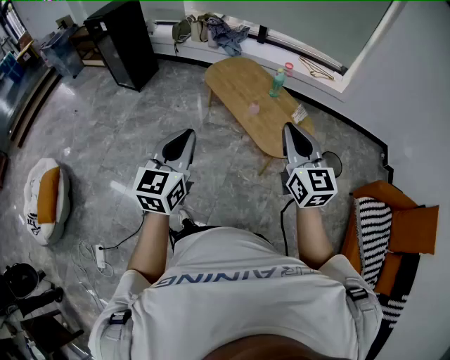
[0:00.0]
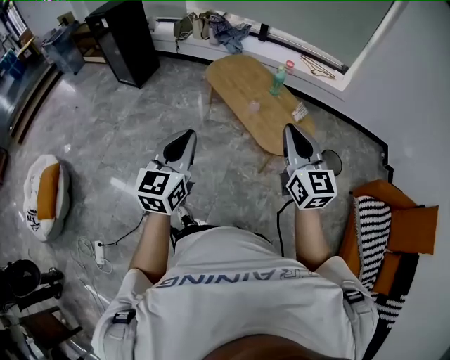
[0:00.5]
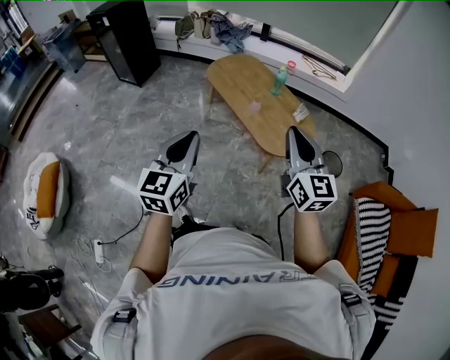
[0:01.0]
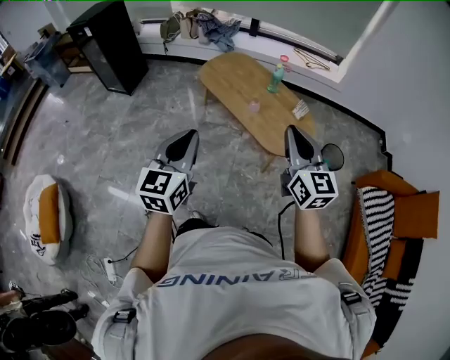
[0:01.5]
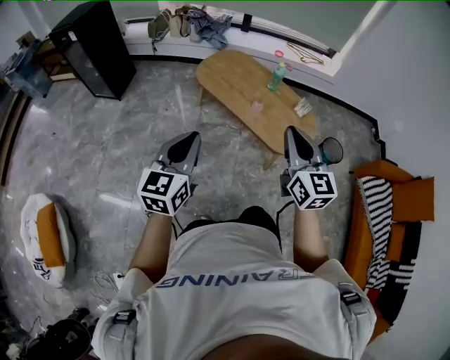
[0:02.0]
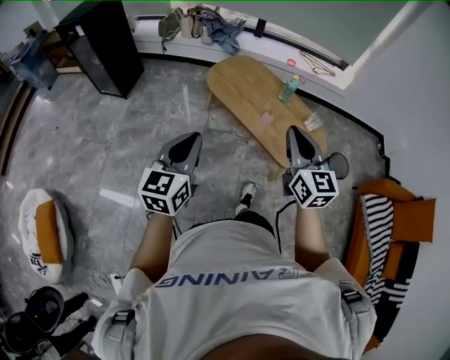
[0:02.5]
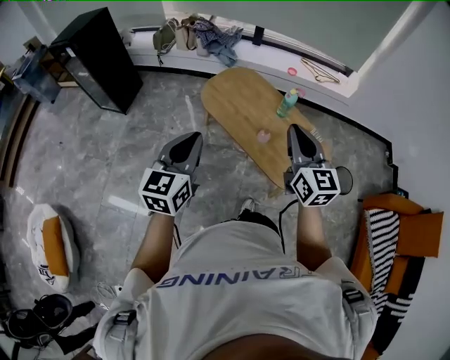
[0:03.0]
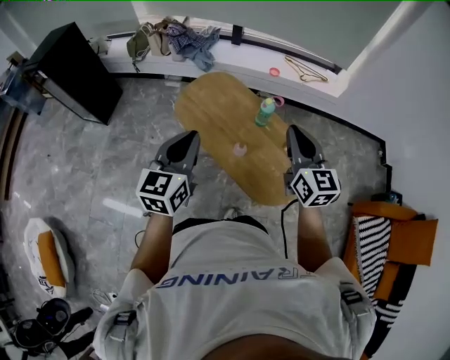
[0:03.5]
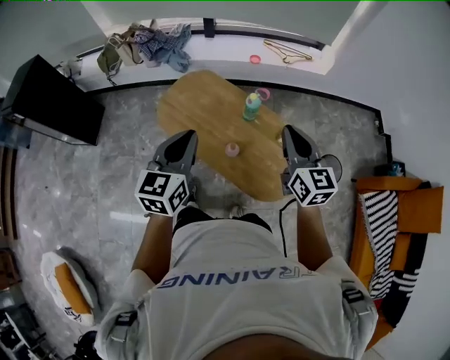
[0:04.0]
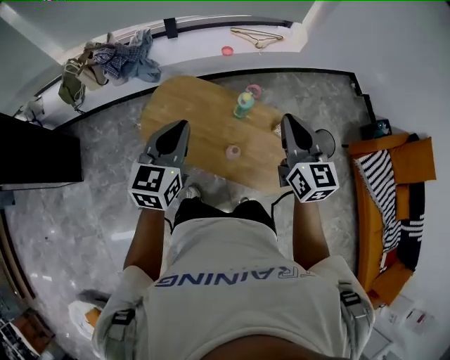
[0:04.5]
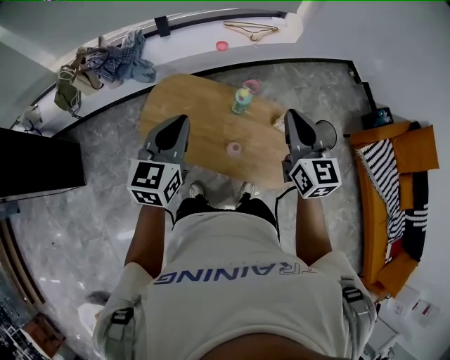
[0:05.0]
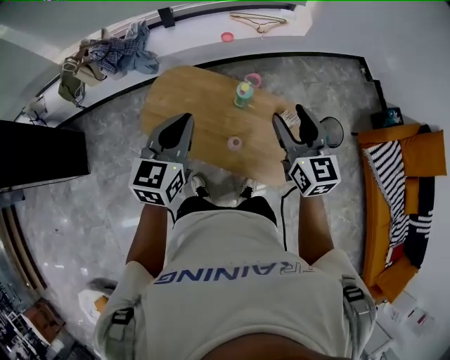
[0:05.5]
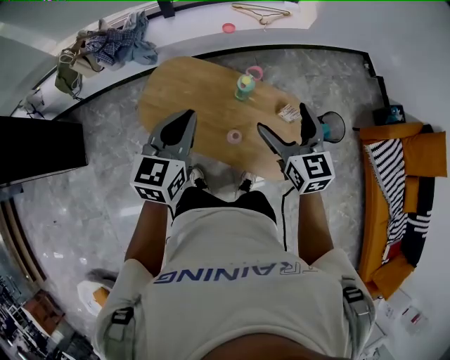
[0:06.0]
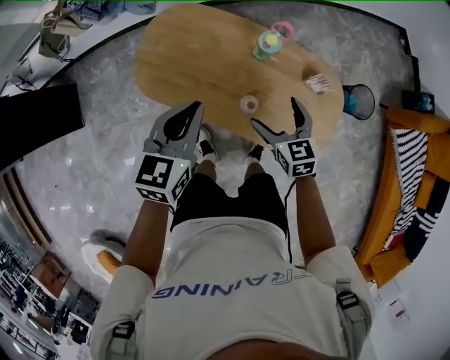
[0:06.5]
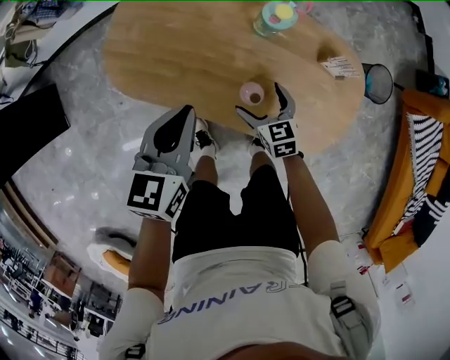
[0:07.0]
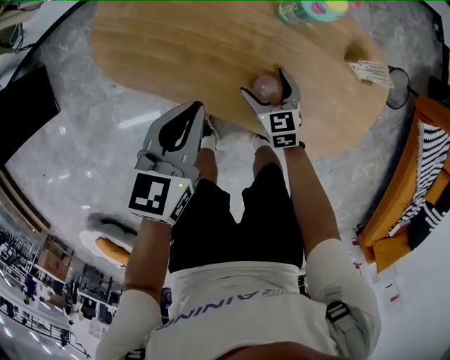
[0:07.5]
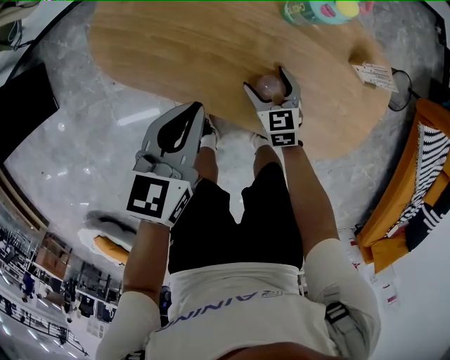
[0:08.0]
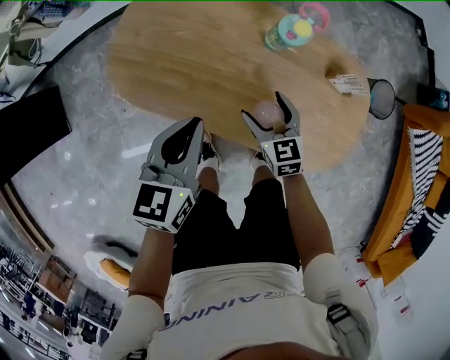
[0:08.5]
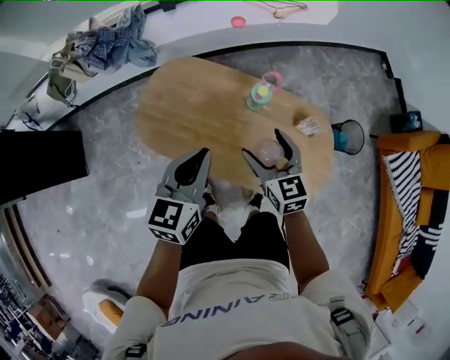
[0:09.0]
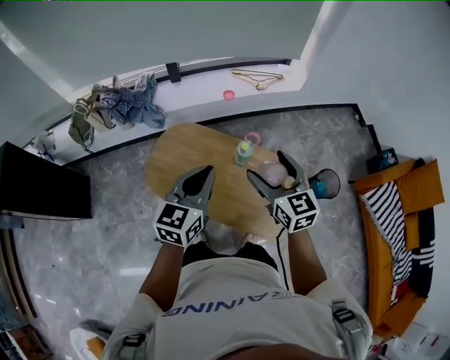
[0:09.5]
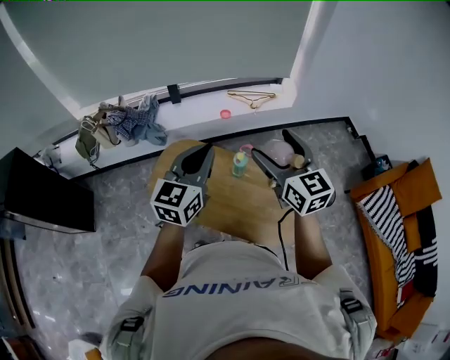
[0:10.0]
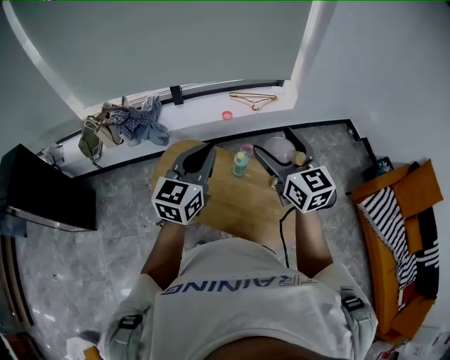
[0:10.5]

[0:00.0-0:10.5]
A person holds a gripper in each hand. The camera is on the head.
0:00.0 to 0:02.0: Both grippers travel together to the left and forward, approximately 15 cm.
0:02.0 to 0:04.0: The two grippers travel together, forward, approximately 40 cm.
0:04.0 to 0:06.5: The left gripper heads downward and forward, covering approximately 25 cm, and rotates approximately 20 degrees. The right gripper is displaced downward by some 30 cm, changes its angle by about 30 degrees, and opens its fingers.
0:06.5 to 0:08.5: The grippers both shift downward by roughly 15 cm.
0:08.5 to 0:10.5: The grippers both shift upward by approximately 50 cm. The left gripper rotates approximately 30 degrees. The right gripper angles its fingers upward, by approximately 40 degrees.

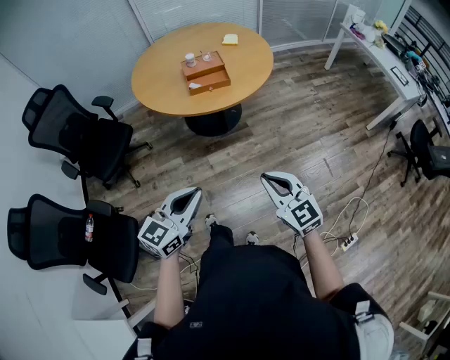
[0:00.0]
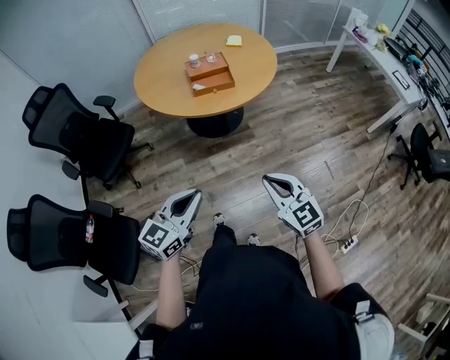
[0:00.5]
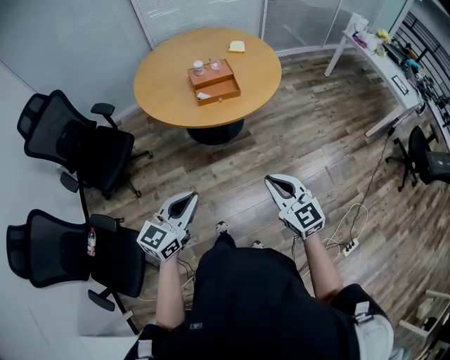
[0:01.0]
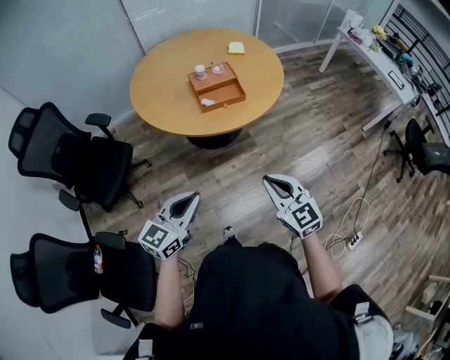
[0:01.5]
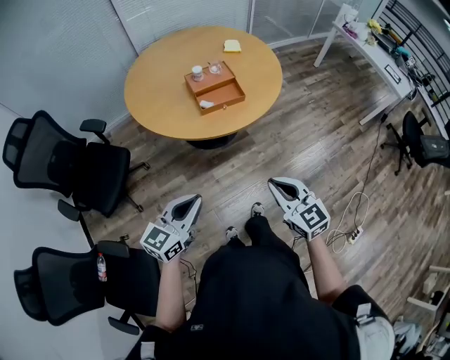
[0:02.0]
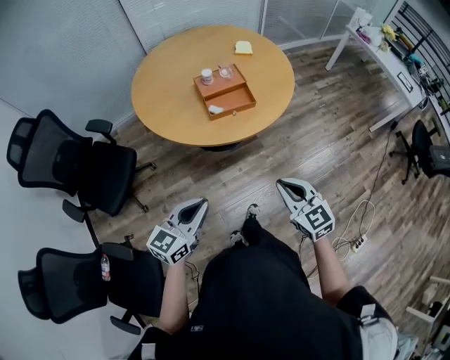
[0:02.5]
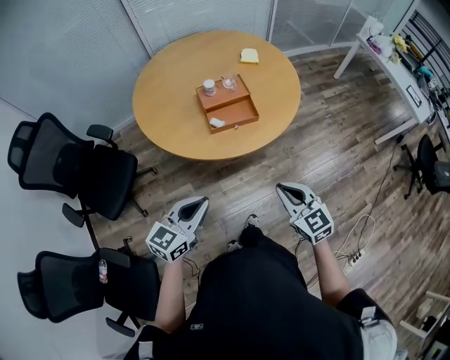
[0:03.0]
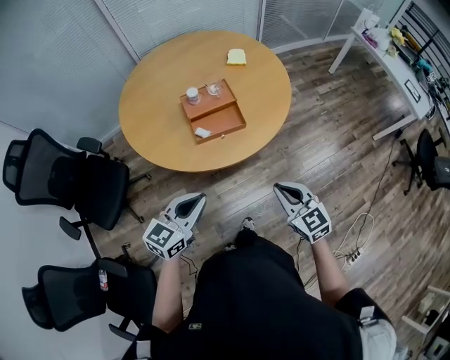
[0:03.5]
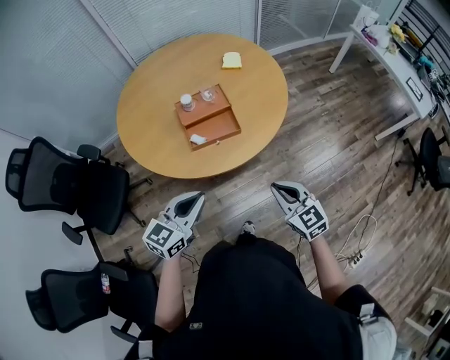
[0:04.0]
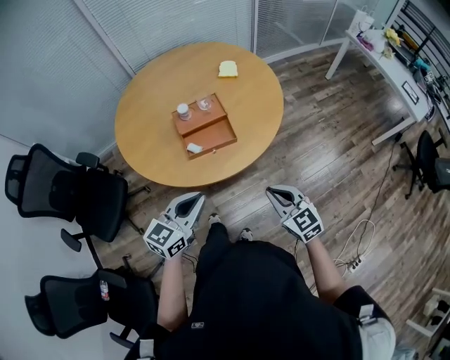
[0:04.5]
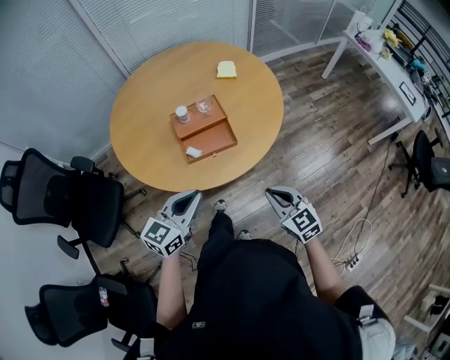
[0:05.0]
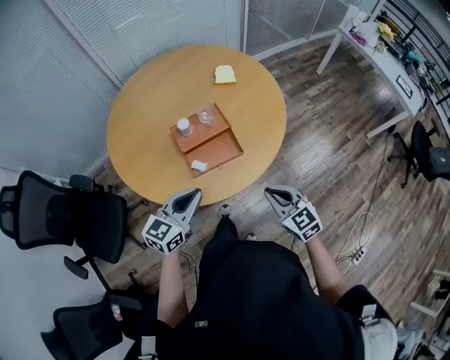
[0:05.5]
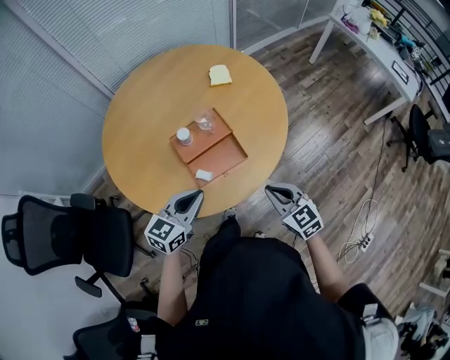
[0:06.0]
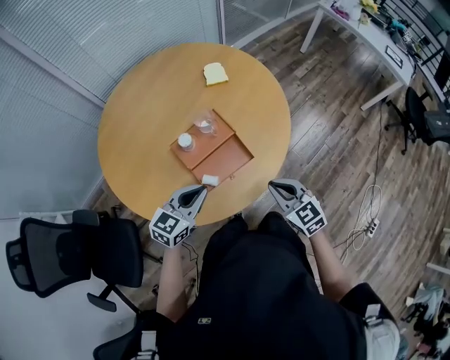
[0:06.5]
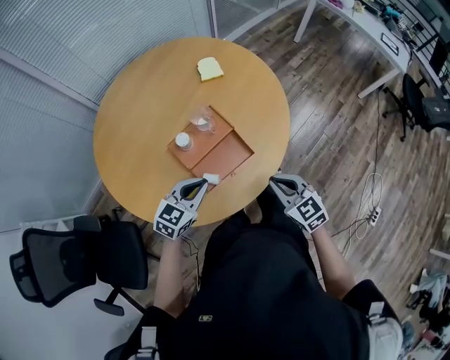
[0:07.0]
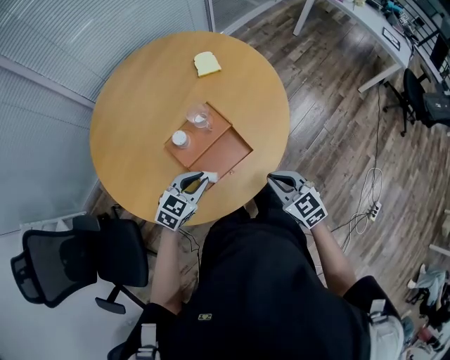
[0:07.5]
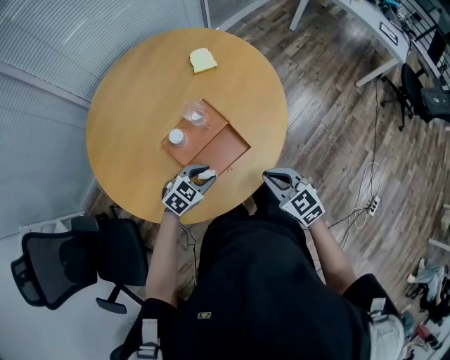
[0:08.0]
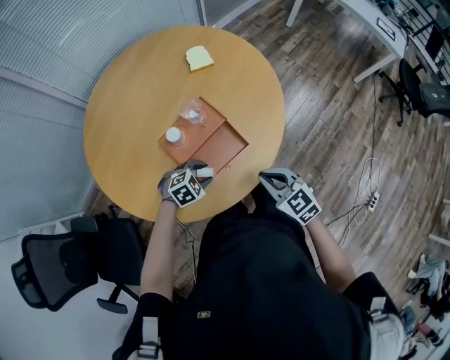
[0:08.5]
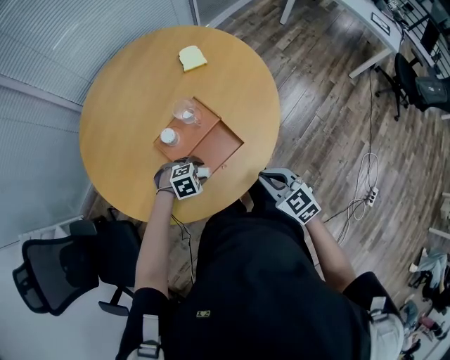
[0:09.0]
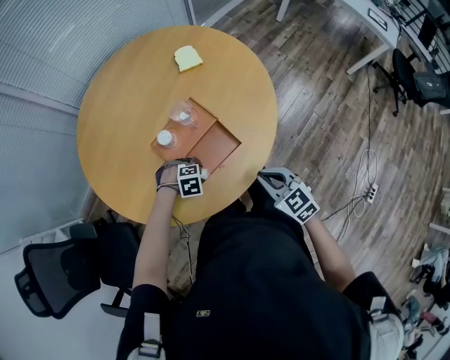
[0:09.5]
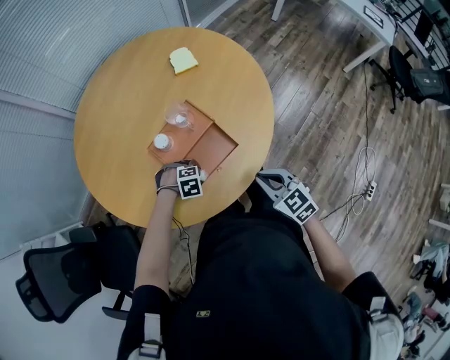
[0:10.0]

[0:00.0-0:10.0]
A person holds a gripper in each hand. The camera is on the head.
0:00.0 to 0:02.0: Both grippers move to the left and forward, about 20 cm.
0:02.0 to 0:04.0: The two grippers go about 25 cm forward and to the right.
0:04.0 to 0:06.0: Both grippers move forward and to the left, about 20 cm.
0:06.0 to 0:08.0: The right gripper changes place by some 5 cm. The left gripper goes some 20 cm downward and forward, swivels approximately 40 degrees, and opens its fingers.
0:08.0 to 0:10.0: The left gripper heads downward, covering roughly 10 cm, and angles its fingers downward, by approximately 30 degrees.

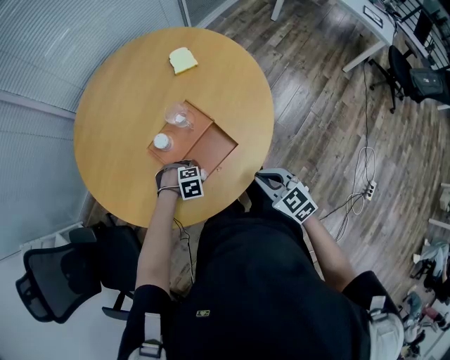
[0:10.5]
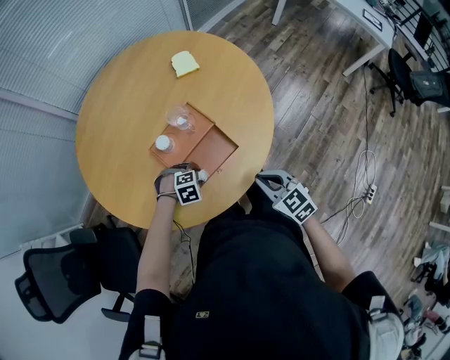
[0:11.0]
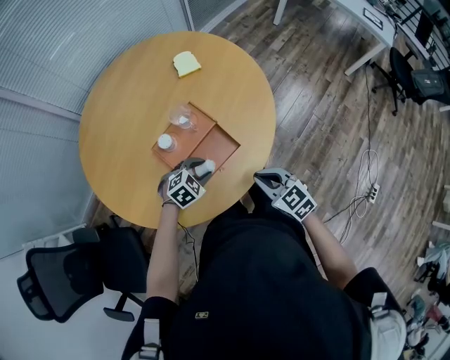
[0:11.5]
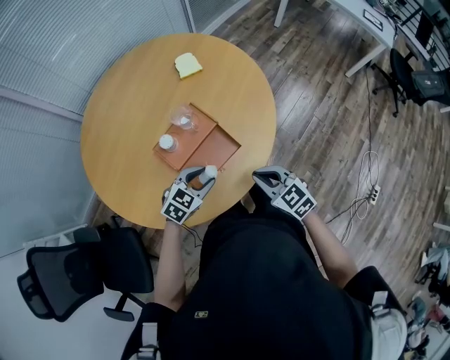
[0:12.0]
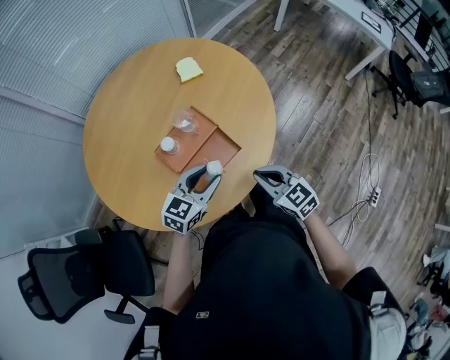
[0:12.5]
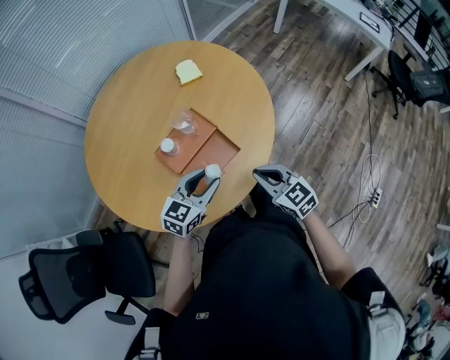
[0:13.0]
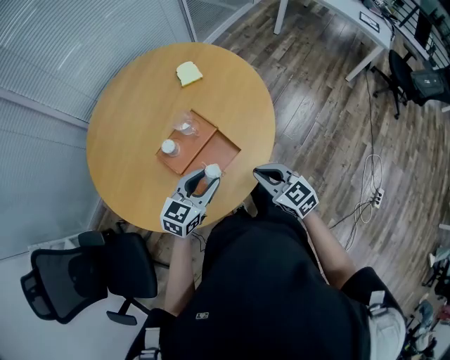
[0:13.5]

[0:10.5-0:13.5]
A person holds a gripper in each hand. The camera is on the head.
0:10.5 to 0:12.0: The left gripper shifts some 15 cm upward, and tilts its fingers approximately 40 degrees upward.
0:12.0 to 0:13.5: The left gripper travels upward by approximately 10 cm, and changes its angle by about 20 degrees.

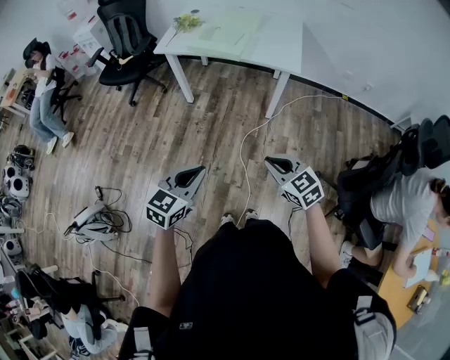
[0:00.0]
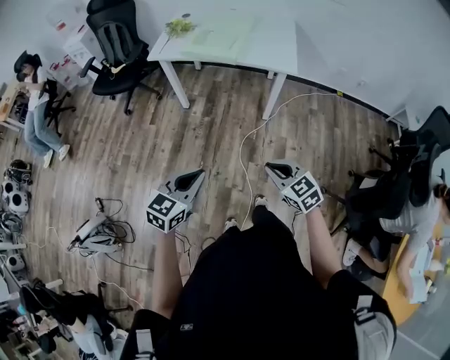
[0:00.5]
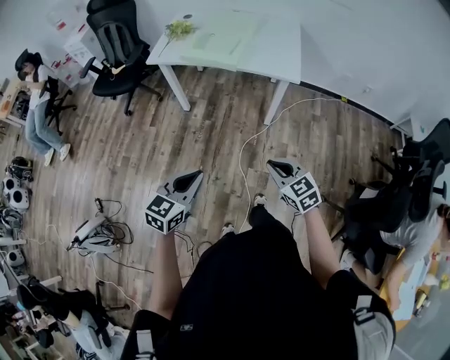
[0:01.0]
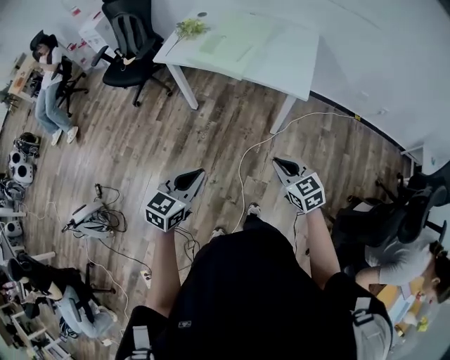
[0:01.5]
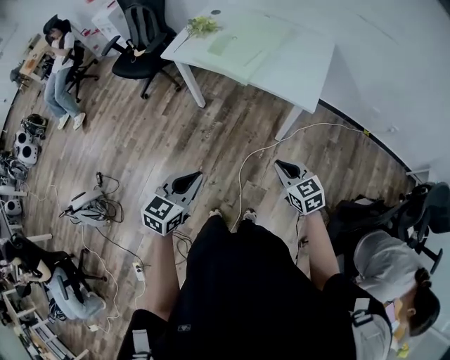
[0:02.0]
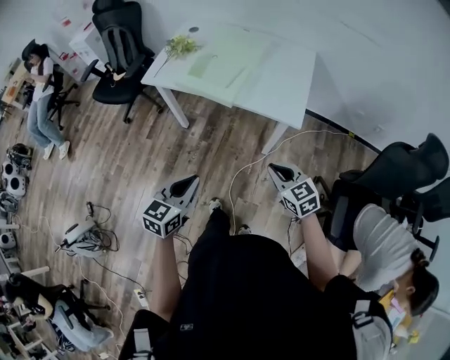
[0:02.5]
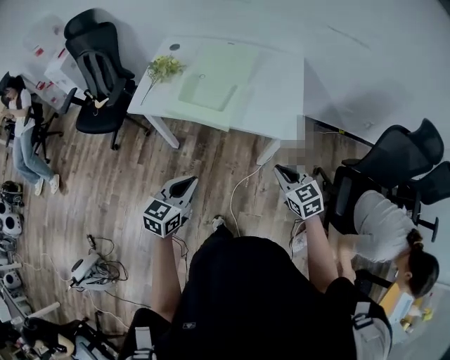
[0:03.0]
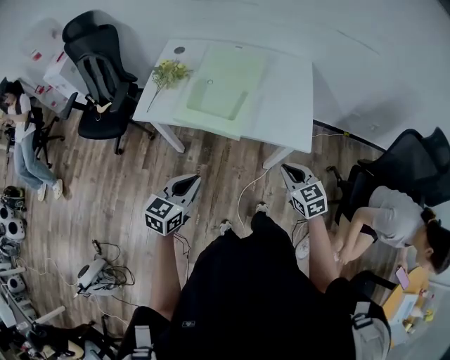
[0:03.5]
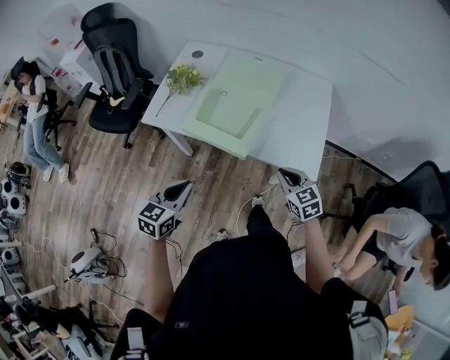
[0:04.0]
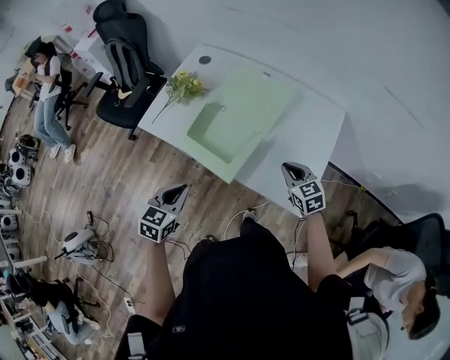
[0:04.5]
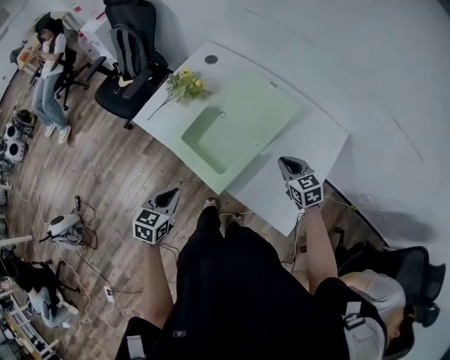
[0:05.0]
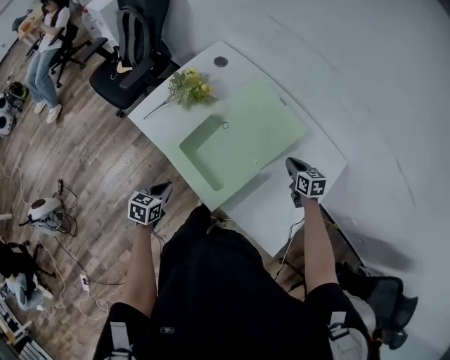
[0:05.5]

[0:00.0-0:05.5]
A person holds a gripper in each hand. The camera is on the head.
0:00.0 to 0:02.0: The two grippers go some 25 cm forward and to the right.
0:02.0 to 0:03.5: Both grippers travel together forward, approximately 25 cm.
0:03.5 to 0:05.5: The left gripper shifts by about 30 cm, and rotates approximately 40 degrees. Meanwhile the right gripper changes place by approximately 50 cm, and changes its angle by roughly 20 degrees.
